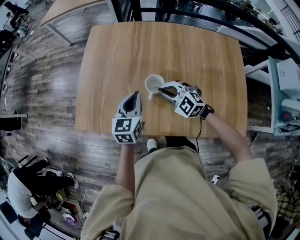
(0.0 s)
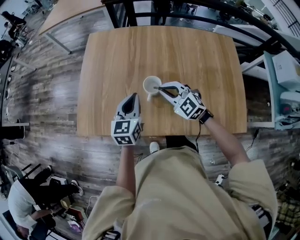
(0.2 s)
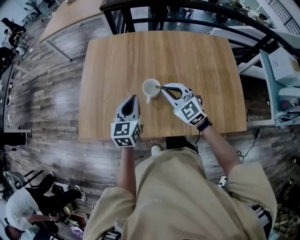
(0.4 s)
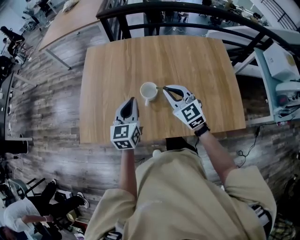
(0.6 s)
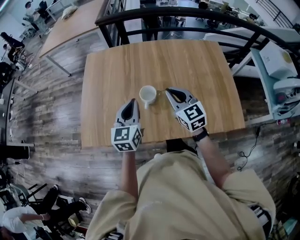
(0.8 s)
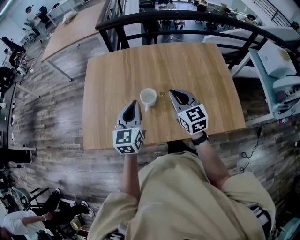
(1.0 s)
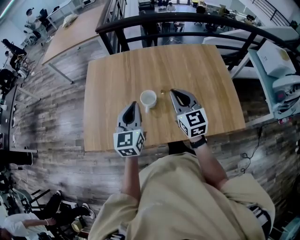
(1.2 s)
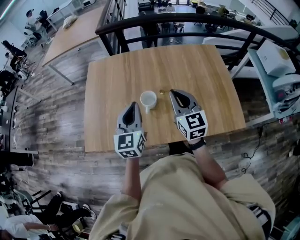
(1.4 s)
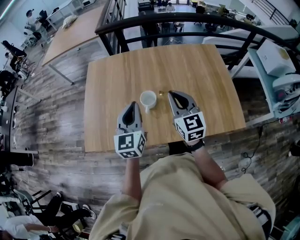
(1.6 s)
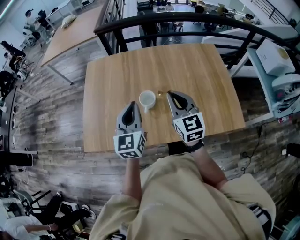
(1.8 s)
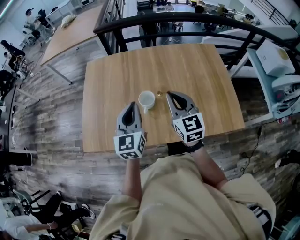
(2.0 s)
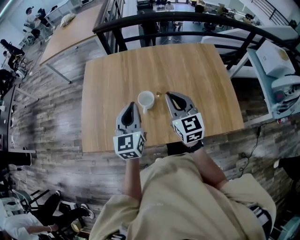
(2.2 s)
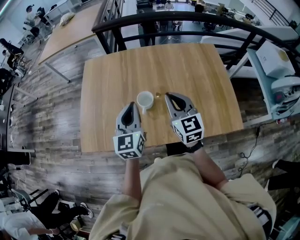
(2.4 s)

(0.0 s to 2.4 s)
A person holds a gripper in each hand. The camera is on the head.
0.0 s - 1.2 s: The left gripper shifts approximately 10 cm upward and backward. The right gripper is displaced upward, to the right and backward by about 20 cm, and changes its angle by some 60 degrees.
1.2 s - 2.4 s: The grippers move only a little.

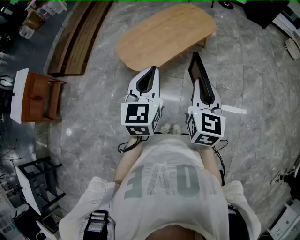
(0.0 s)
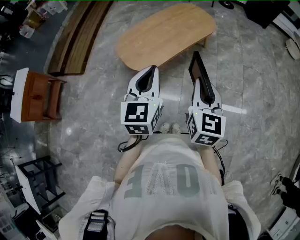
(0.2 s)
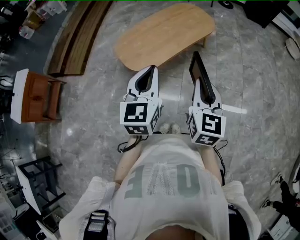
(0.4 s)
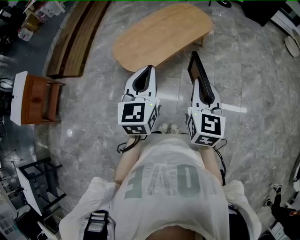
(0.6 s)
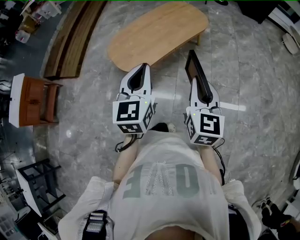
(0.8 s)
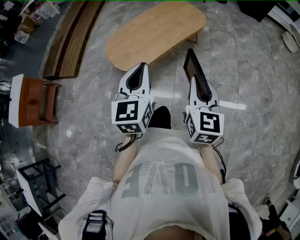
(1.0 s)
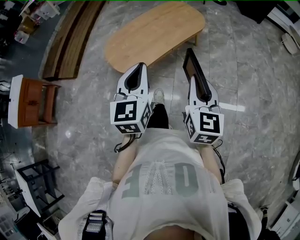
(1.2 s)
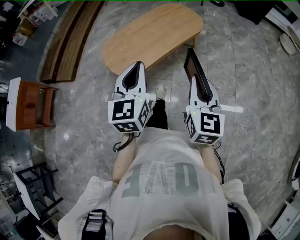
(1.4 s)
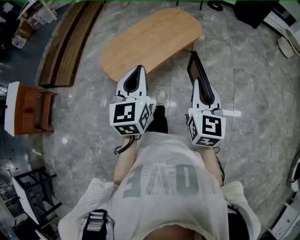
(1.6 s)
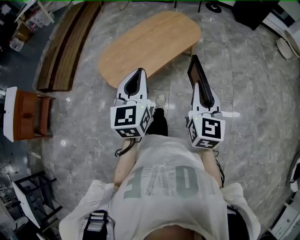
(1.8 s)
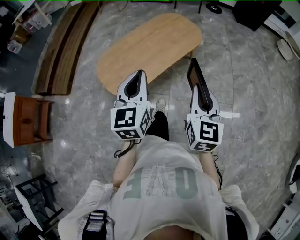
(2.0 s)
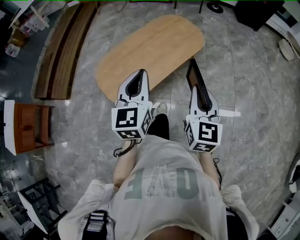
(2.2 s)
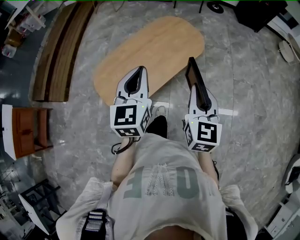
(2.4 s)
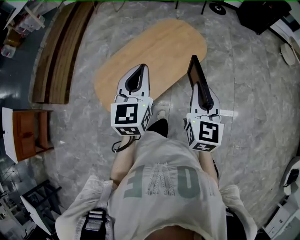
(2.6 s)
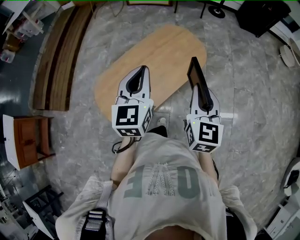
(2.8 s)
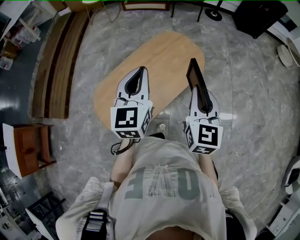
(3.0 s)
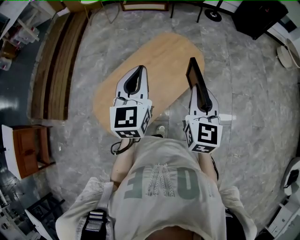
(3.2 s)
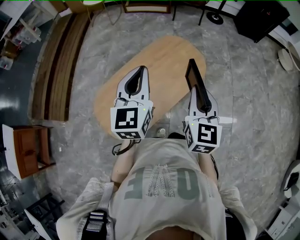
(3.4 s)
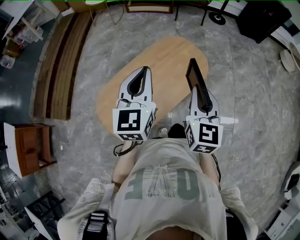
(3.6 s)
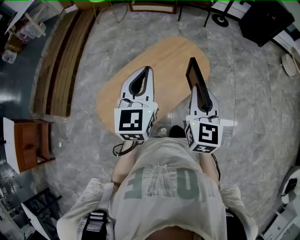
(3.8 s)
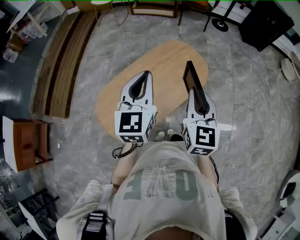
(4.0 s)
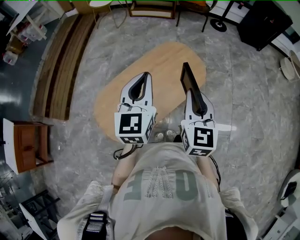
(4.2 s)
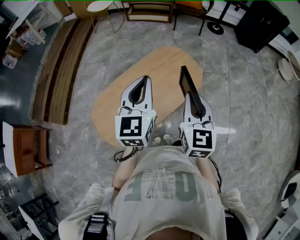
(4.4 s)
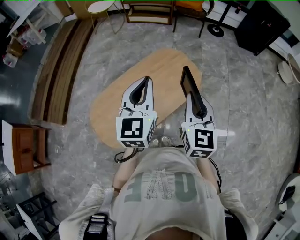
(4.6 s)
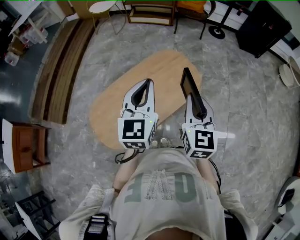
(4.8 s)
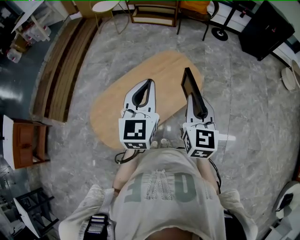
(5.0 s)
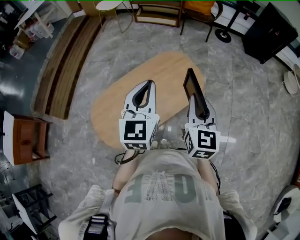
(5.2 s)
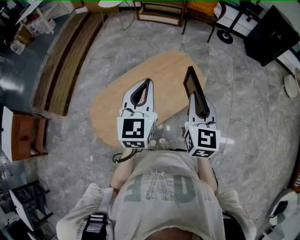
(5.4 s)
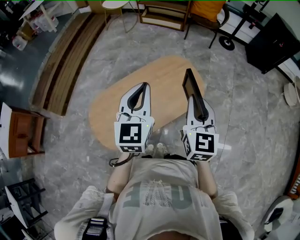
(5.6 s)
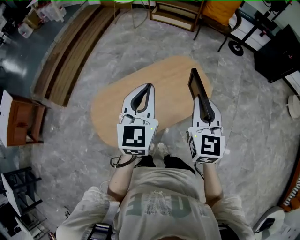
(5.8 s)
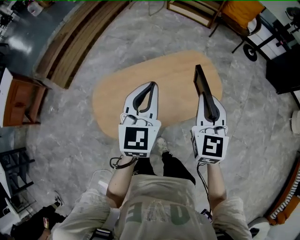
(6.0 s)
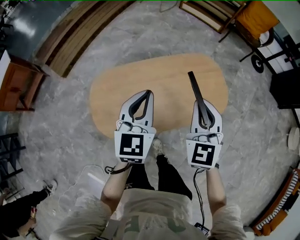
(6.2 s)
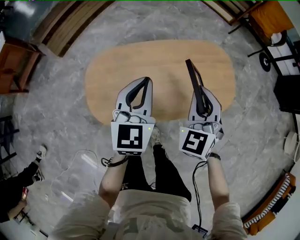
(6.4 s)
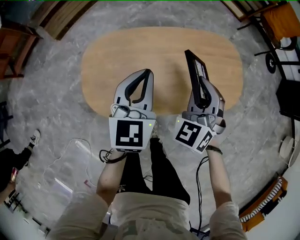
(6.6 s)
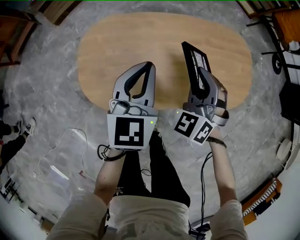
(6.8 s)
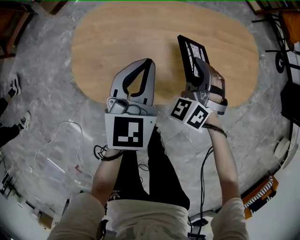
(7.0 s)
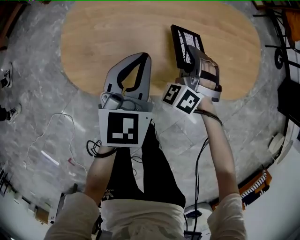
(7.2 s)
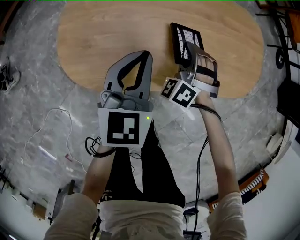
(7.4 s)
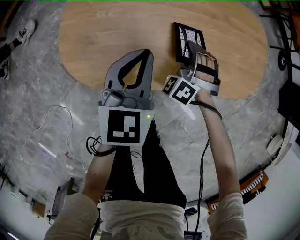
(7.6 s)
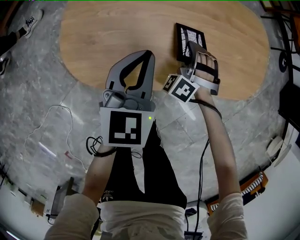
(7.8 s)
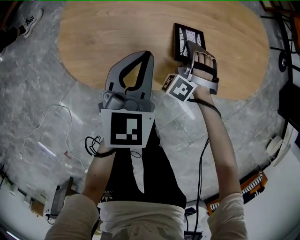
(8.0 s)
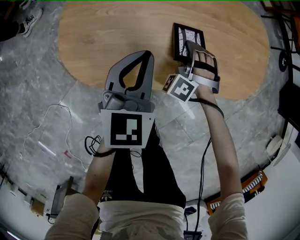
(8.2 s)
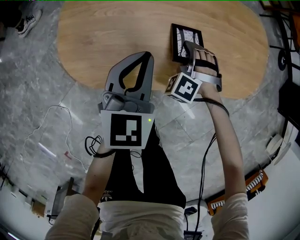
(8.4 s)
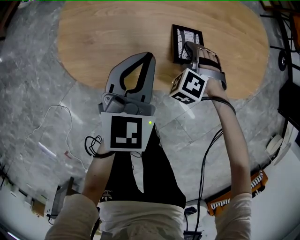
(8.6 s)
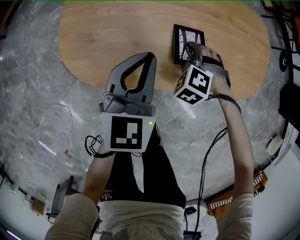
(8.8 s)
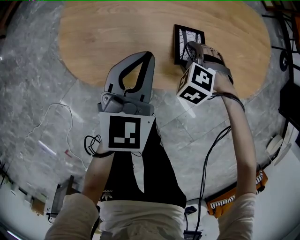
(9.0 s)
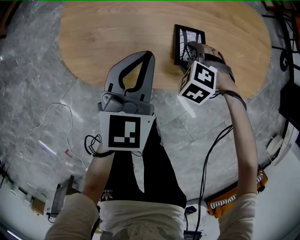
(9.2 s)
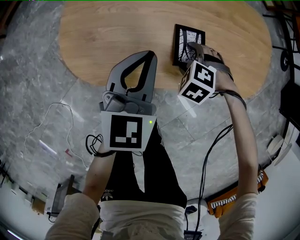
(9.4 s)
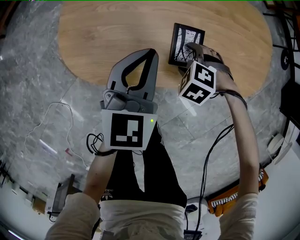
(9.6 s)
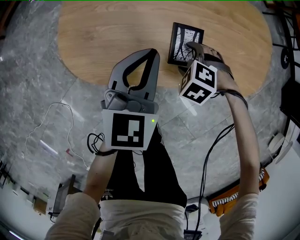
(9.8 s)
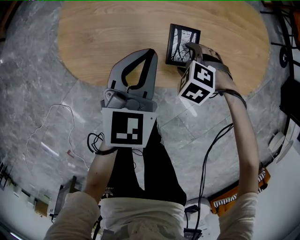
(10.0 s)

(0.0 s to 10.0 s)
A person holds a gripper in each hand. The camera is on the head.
0.0 s - 1.4 s: The left gripper shifts by approximately 5 cm. The right gripper goes roughly 10 cm to the right.
1.4 s - 2.8 s: Both grippers move forward, roughly 35 cm.
2.8 s - 4.2 s: The grippers both shift forward by some 10 cm.
4.2 s - 5.8 s: The left gripper moves forward, about 5 cm; the right gripper heads forward, covering approximately 10 cm.
5.8 s - 7.2 s: The two grippers go approximately 50 cm downward and to the left. The right gripper rotates around the line of its fingers by approximately 70 degrees, counterclockwise from behind. The left gripper changes its angle by about 30 degrees.
7.2 s - 8.6 s: The right gripper moves downward, approximately 10 cm, changes its angle by roughly 30 degrees, and opens up.
8.6 s - 10.0 s: The right gripper rotates roughly 20 degrees, and opens.

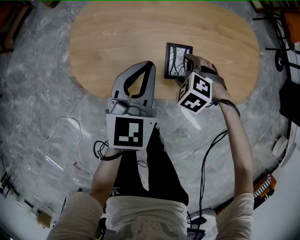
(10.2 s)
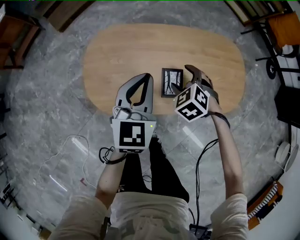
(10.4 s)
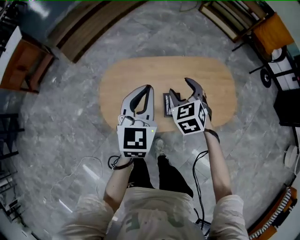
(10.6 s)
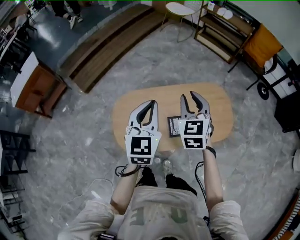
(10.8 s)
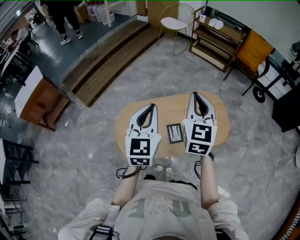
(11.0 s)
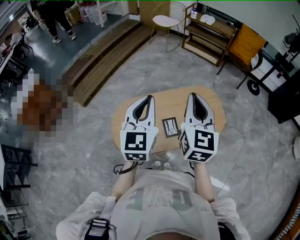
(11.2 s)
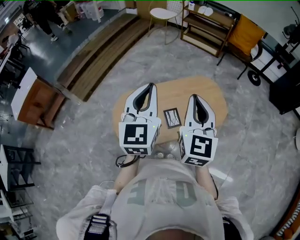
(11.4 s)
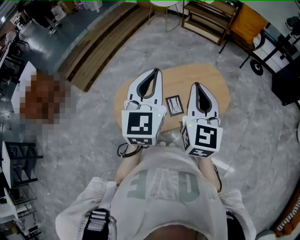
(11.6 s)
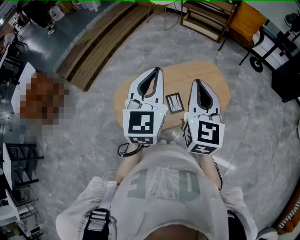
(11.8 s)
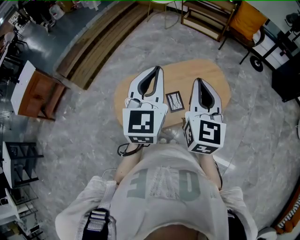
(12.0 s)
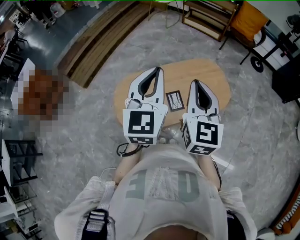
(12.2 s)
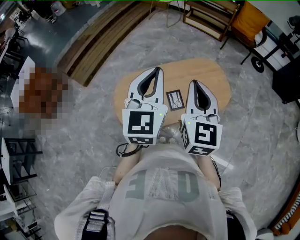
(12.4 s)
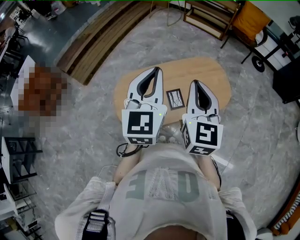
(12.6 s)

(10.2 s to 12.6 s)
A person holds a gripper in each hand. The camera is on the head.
10.2 s - 11.4 s: The grippers both shift upward by about 50 cm. The left gripper swivels roughly 20 degrees. Meanwhile the right gripper points its fingers roughly 70 degrees further upward, and closes its fingers.
11.4 s - 12.6 s: The grippers stay close to where they were, moving slightly.

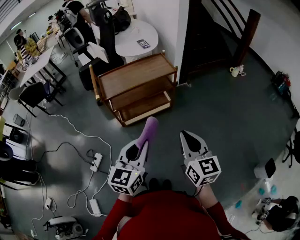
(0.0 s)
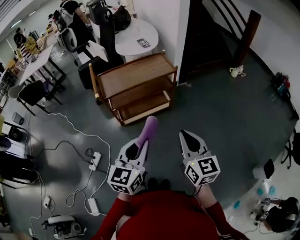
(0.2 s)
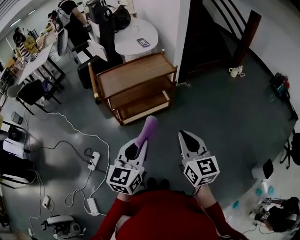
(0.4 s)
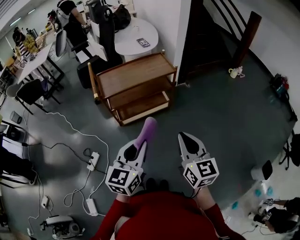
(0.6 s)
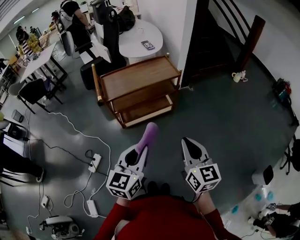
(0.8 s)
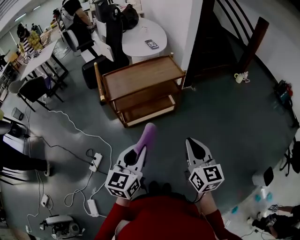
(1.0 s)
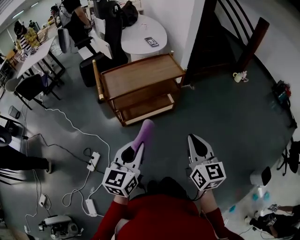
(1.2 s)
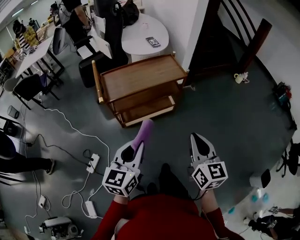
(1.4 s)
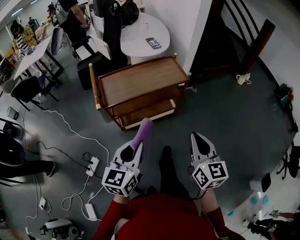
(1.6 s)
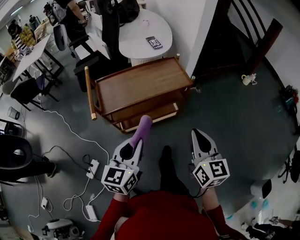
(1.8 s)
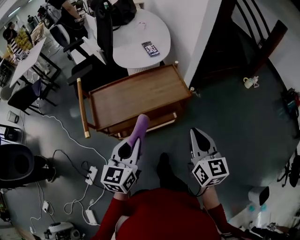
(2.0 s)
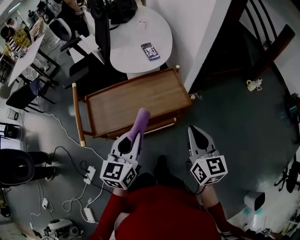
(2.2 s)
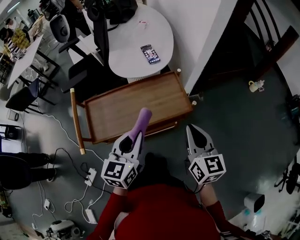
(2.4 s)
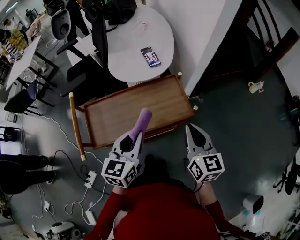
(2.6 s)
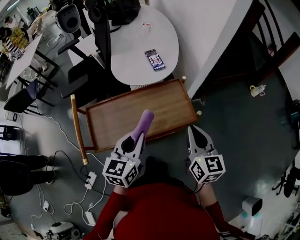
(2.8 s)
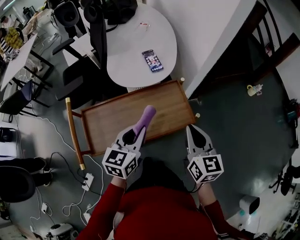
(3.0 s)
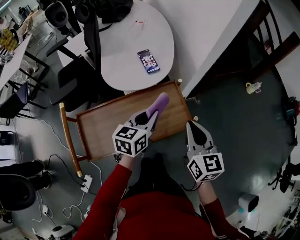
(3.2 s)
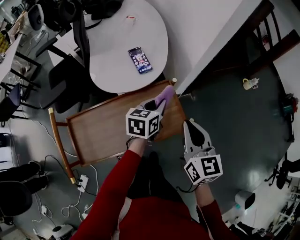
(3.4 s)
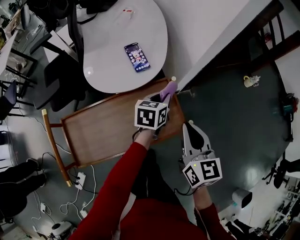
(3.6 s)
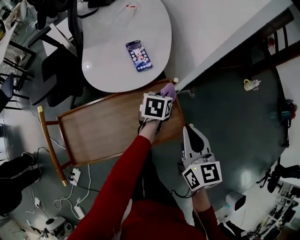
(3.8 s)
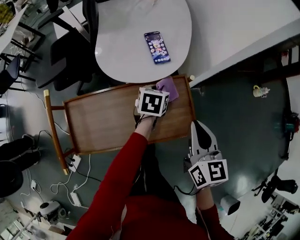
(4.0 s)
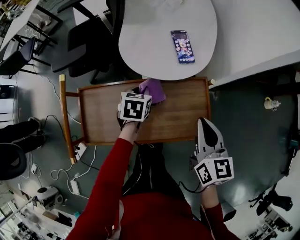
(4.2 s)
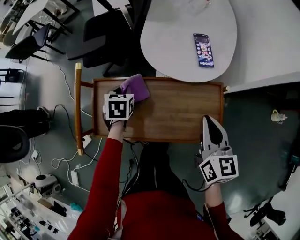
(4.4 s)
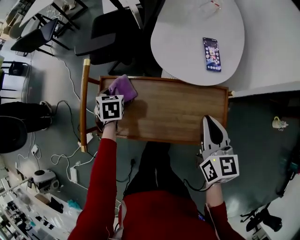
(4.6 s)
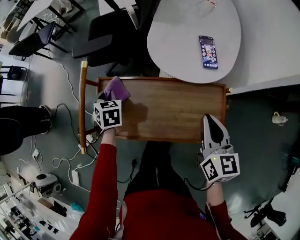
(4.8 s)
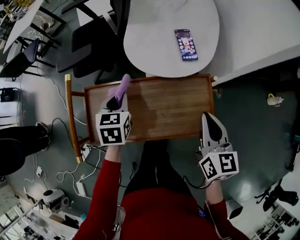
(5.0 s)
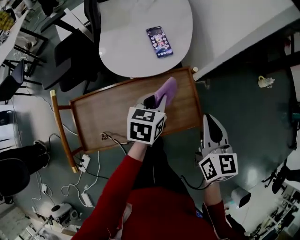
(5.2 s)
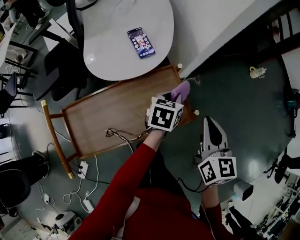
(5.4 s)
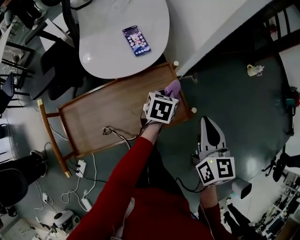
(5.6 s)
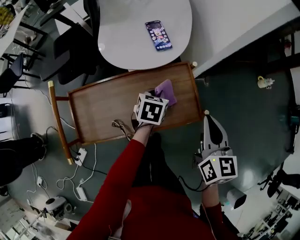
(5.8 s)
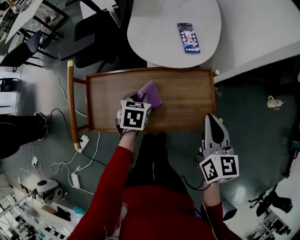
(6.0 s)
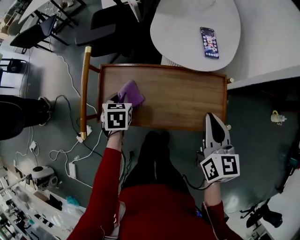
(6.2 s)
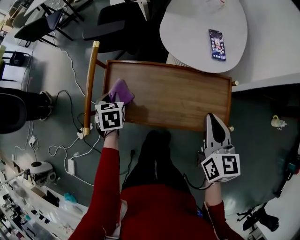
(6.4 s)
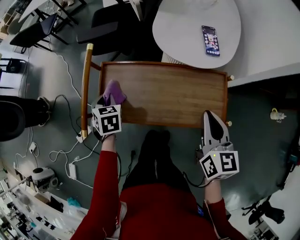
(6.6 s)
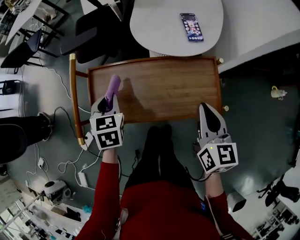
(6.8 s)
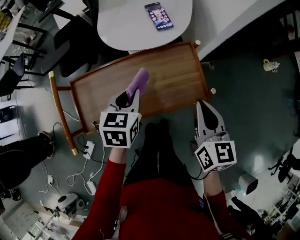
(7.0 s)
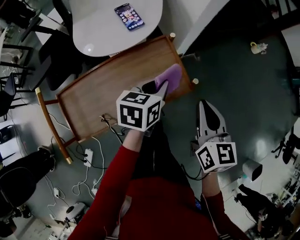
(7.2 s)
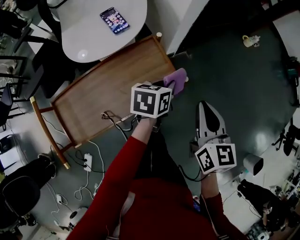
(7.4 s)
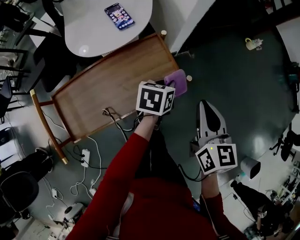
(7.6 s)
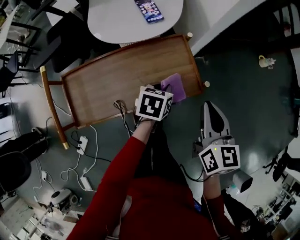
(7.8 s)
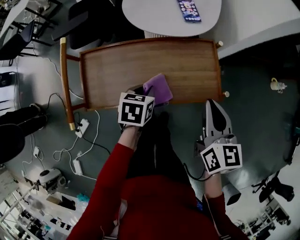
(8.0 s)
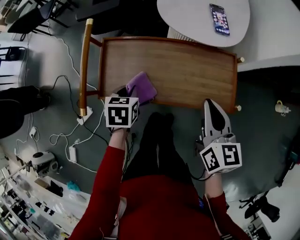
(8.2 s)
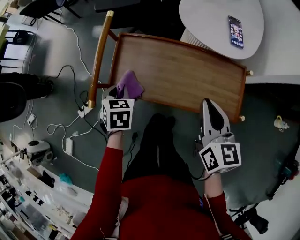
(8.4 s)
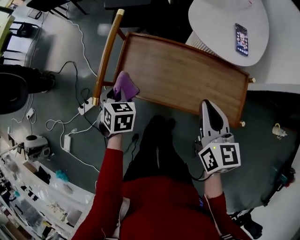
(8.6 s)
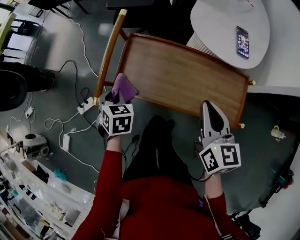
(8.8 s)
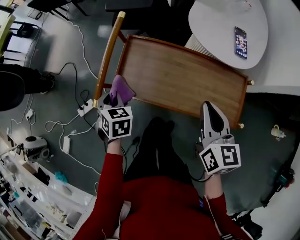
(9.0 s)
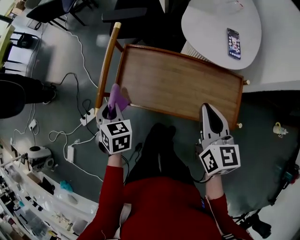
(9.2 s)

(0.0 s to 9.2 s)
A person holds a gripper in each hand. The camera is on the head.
0.0 s - 1.6 s: The right gripper heads forward, covering about 10 cm; the left gripper goes about 15 cm forward and to the left.
1.6 s - 3.0 s: Both grippers move forward, about 35 cm.
3.0 s - 4.6 s: The left gripper shifts by about 35 cm, and tilts its fingers about 40 degrees downward; the right gripper shifts by approximately 15 cm, and swivels roughly 20 degrees.
4.6 s - 6.2 s: The left gripper reaches about 10 cm upward, then returns.
6.2 s - 7.6 s: The left gripper reaches approximately 10 cm upward, then returns, and turns by approximately 50 degrees; the right gripper moves some 20 cm, and turns by roughly 30 degrees.
7.6 s - 9.2 s: The left gripper changes place by some 50 cm, and changes its angle by about 70 degrees; the right gripper ends up some 25 cm from where it was, and changes its angle by roughly 40 degrees.
